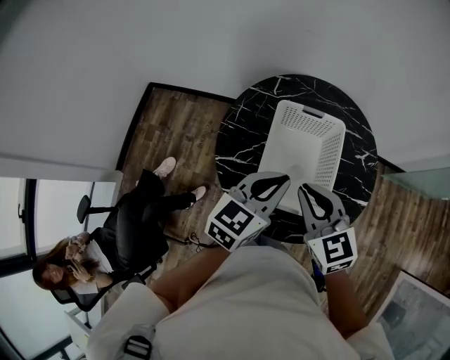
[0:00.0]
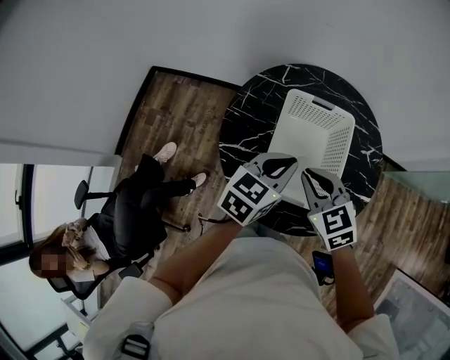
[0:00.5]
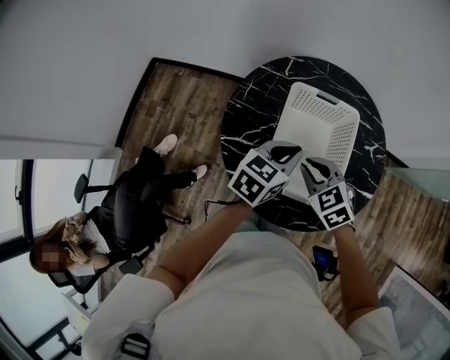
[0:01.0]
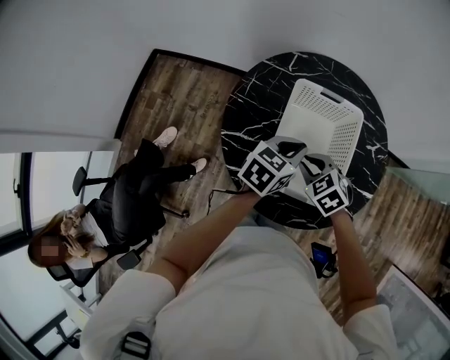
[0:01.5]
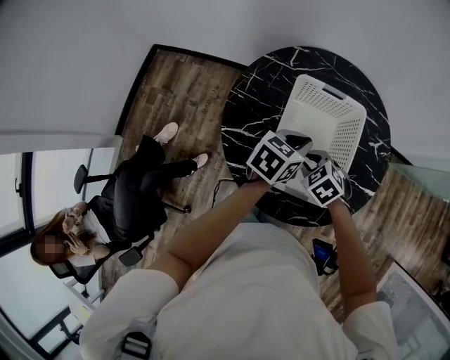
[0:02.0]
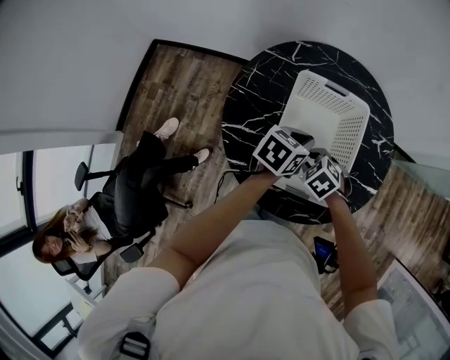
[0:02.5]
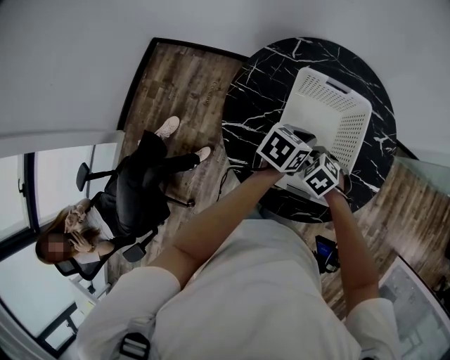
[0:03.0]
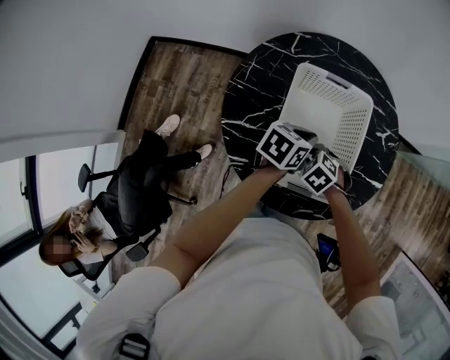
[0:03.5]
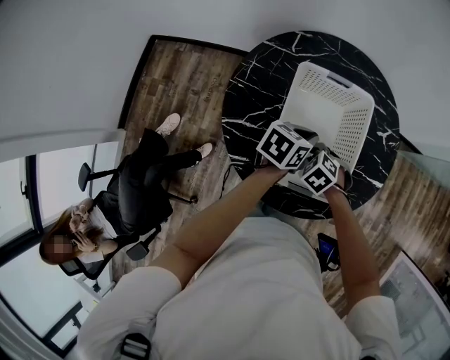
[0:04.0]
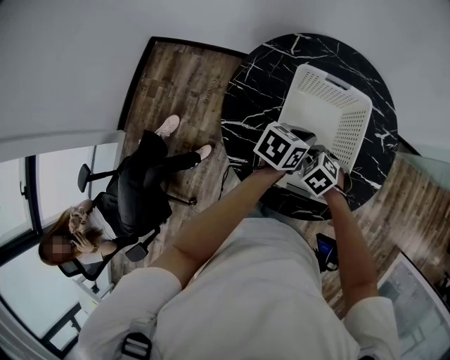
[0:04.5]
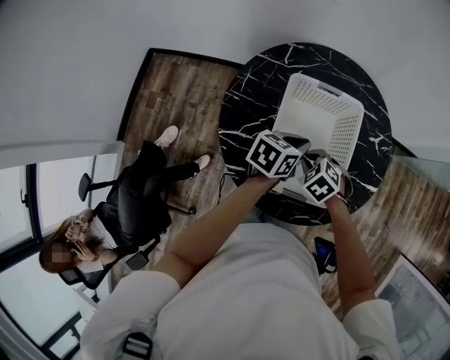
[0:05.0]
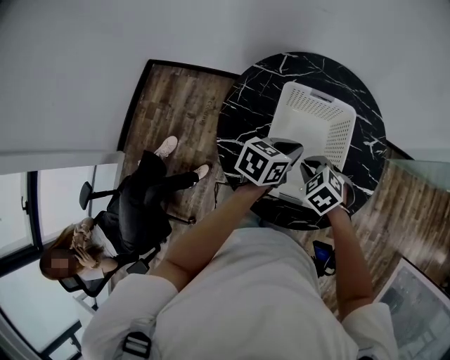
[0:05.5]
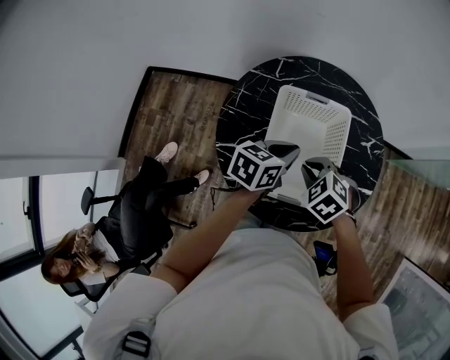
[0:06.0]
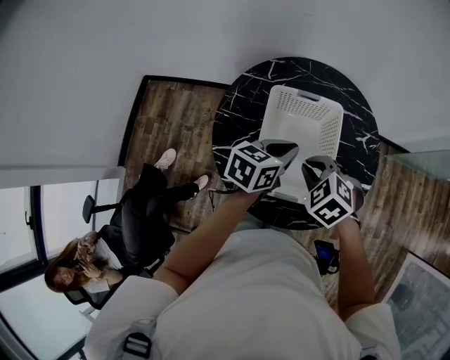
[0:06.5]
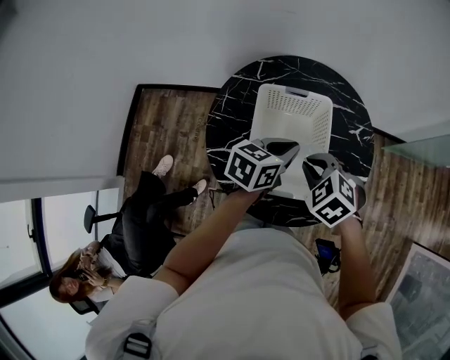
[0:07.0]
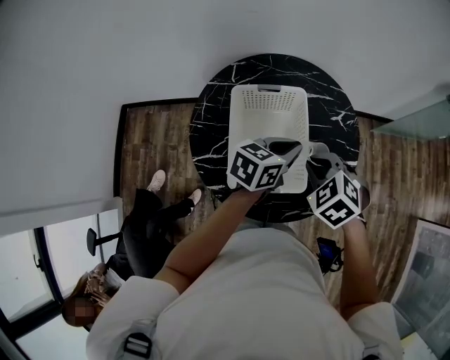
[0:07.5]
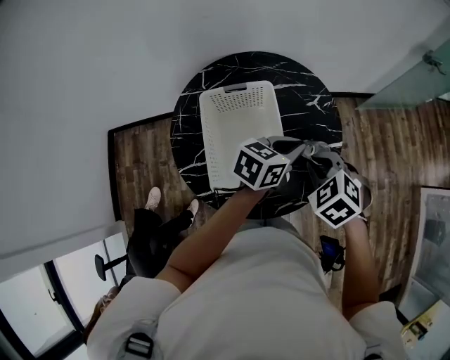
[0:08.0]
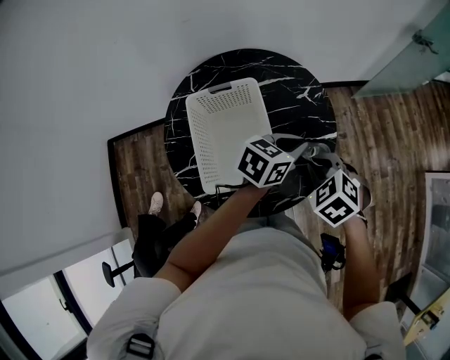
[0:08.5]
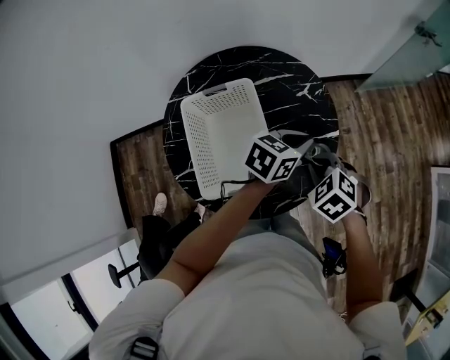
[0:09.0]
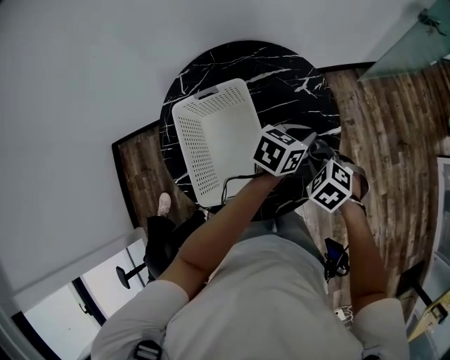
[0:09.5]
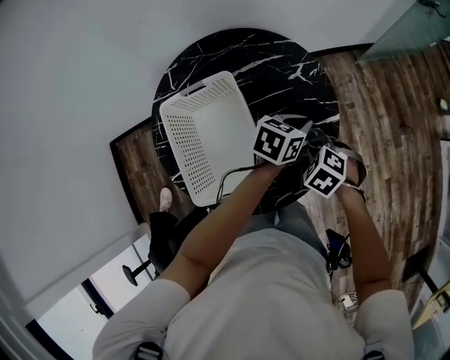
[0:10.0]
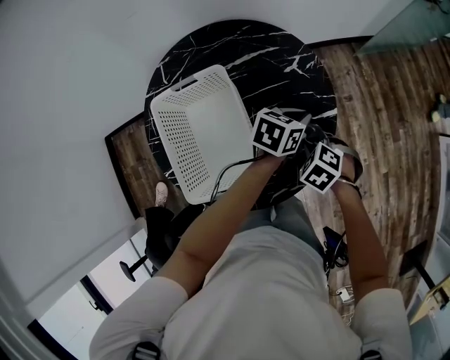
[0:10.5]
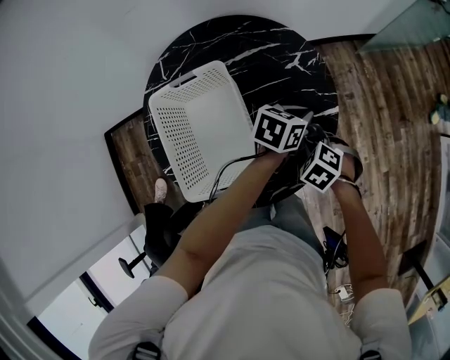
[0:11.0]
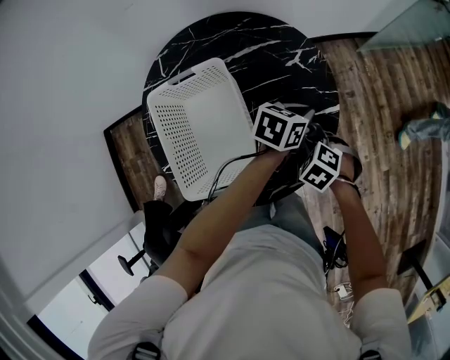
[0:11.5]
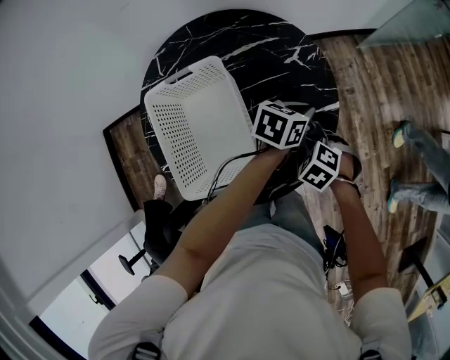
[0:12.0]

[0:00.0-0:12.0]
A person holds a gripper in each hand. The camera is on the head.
0:00.0 to 0:02.0: The left gripper goes some 15 cm downward and forward, and changes its angle by approximately 20 degrees; the right gripper travels downward by about 20 cm, and tips its fingers downward by about 40 degrees.
0:02.0 to 0:04.0: Both grippers move downward, roughly 5 cm.
0:04.0 to 0:06.0: The right gripper travels upward by roughly 15 cm. Meanwhile the left gripper moves upward, some 10 cm.
0:06.0 to 0:08.0: The left gripper moves about 20 cm, and rotates approximately 30 degrees; the right gripper shifts by roughly 20 cm, and changes its angle by some 20 degrees.
0:08.0 to 0:10.0: The right gripper is displaced downward and to the right by some 20 cm. Meanwhile the left gripper moves downward, forward and to the right, roughly 20 cm.
0:10.0 to 0:12.0: The right gripper is displaced downward by roughly 5 cm.

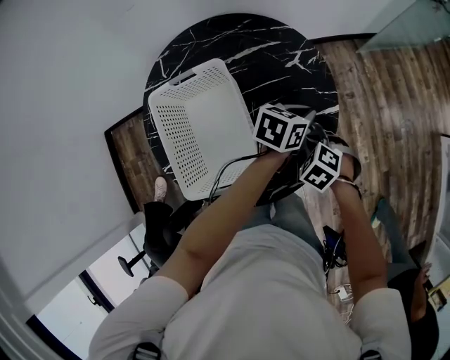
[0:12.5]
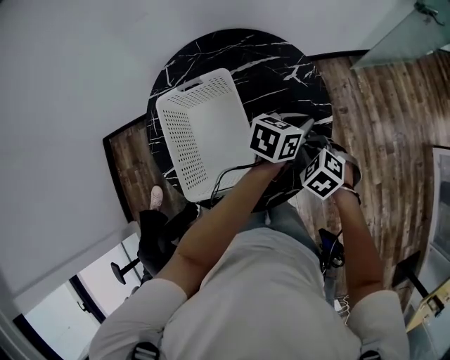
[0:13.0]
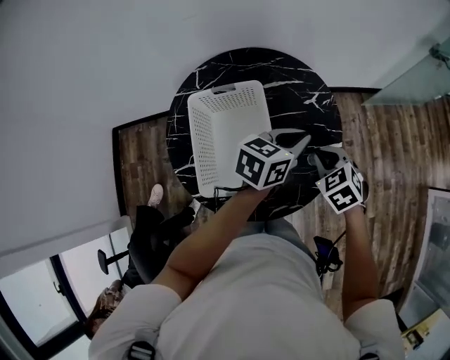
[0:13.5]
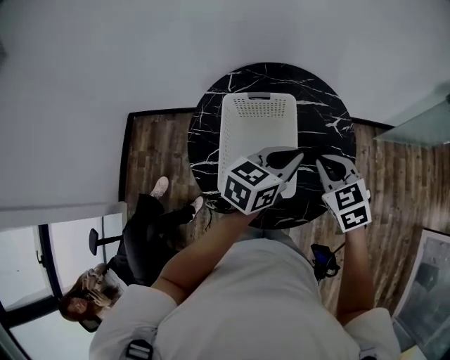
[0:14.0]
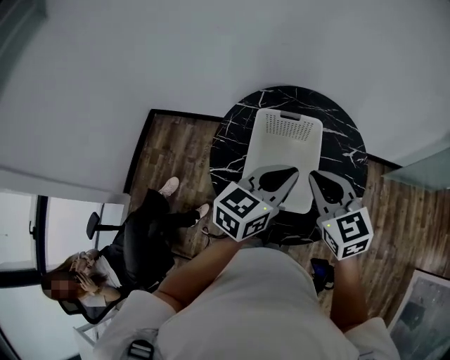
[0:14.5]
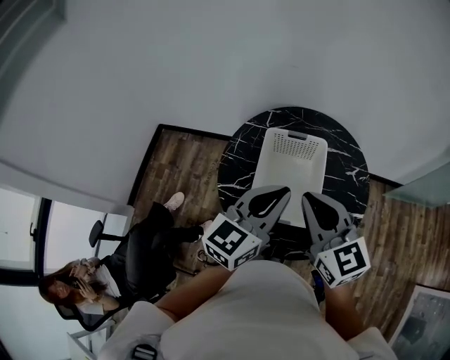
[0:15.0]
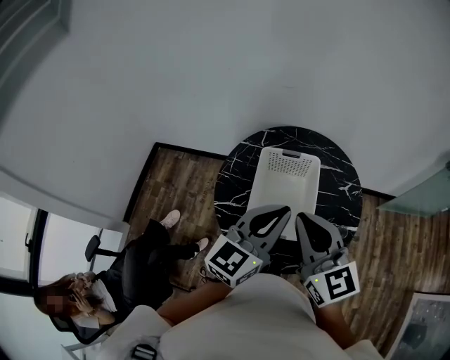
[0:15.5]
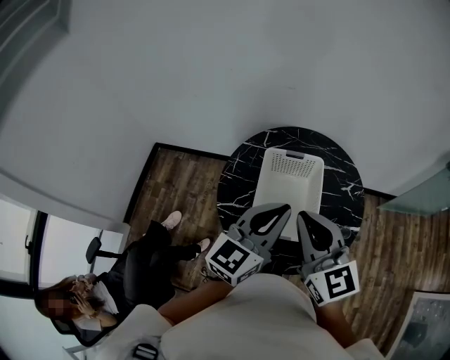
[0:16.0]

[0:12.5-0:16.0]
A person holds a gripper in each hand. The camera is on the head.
0:12.5 to 0:14.5: The left gripper ends up about 40 cm from where it was, and changes its angle by some 40 degrees. Meanwhile the right gripper travels upward by approximately 30 cm, and points its fingers approximately 50 degrees further upward.
0:14.5 to 0:16.0: The right gripper is displaced upward, to the left and backward by some 15 cm, while the left gripper shifts about 10 cm upward and to the left.

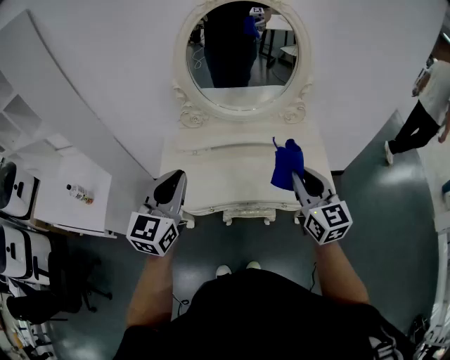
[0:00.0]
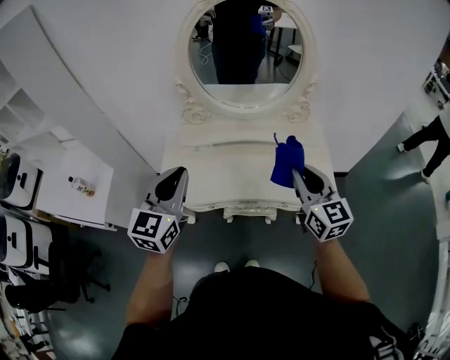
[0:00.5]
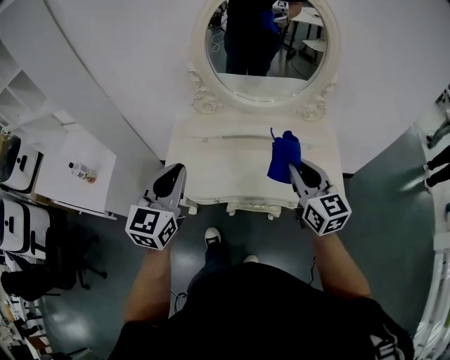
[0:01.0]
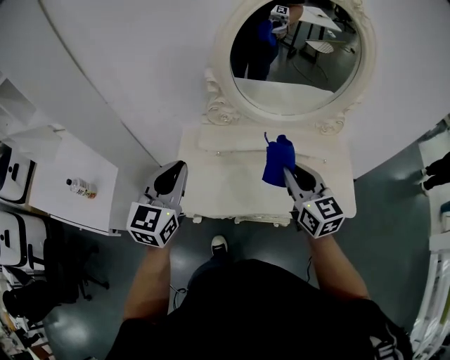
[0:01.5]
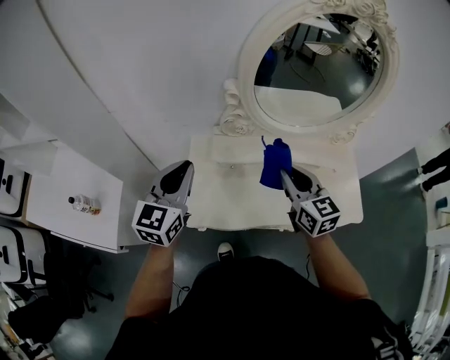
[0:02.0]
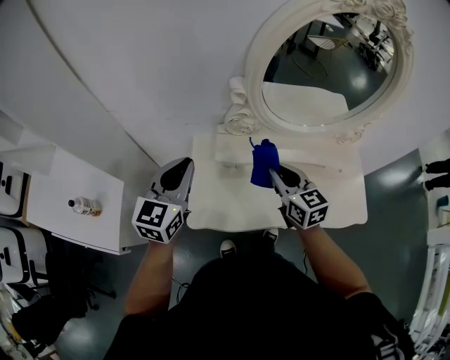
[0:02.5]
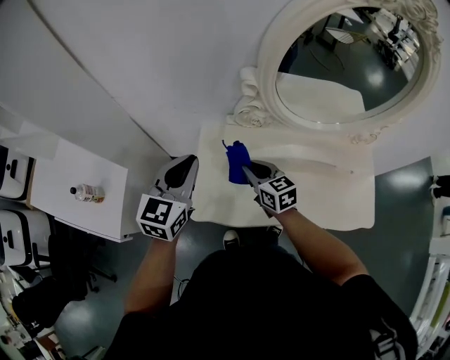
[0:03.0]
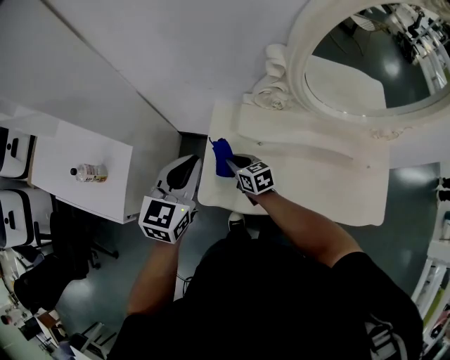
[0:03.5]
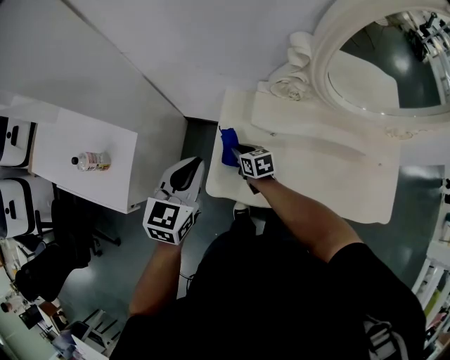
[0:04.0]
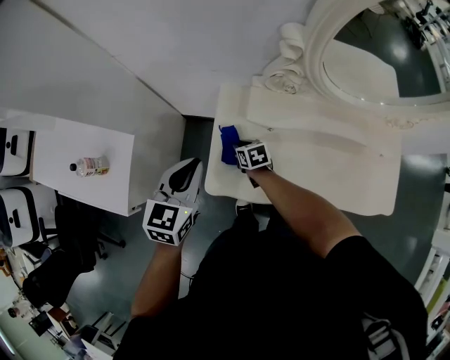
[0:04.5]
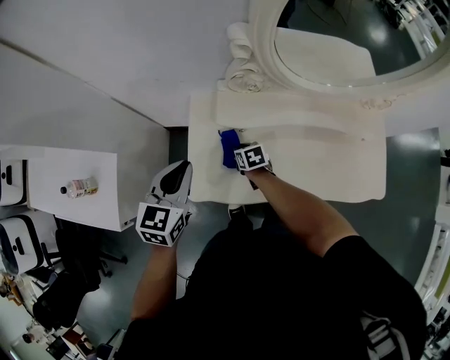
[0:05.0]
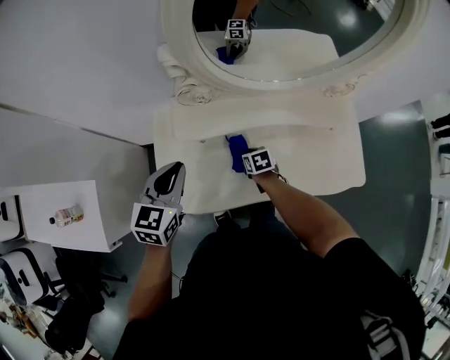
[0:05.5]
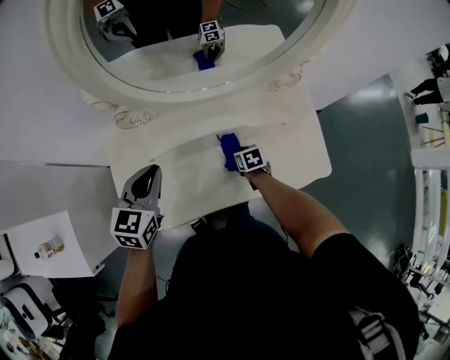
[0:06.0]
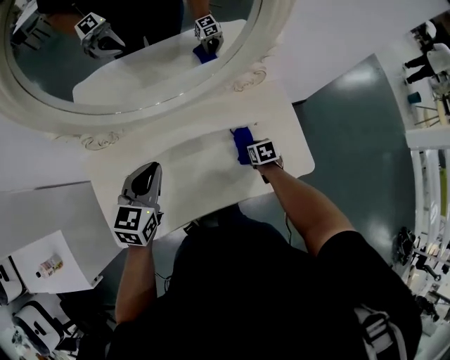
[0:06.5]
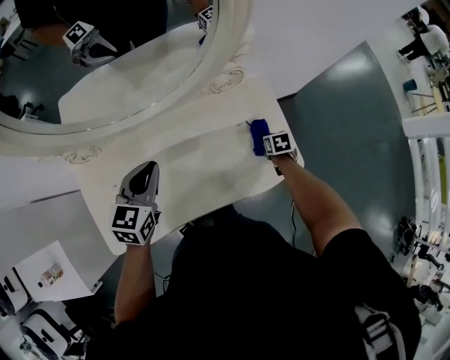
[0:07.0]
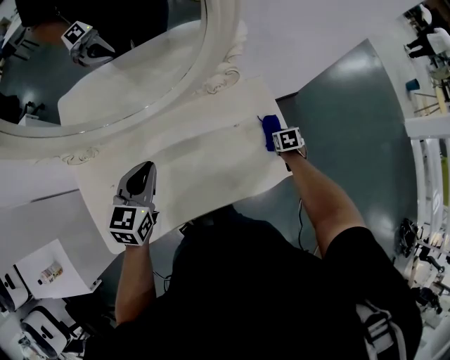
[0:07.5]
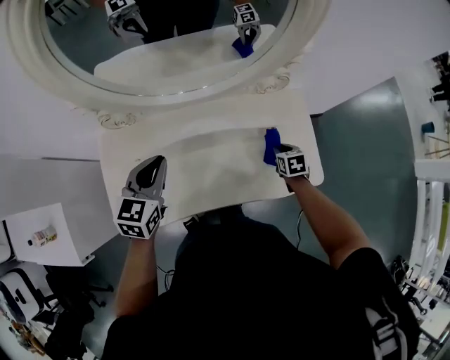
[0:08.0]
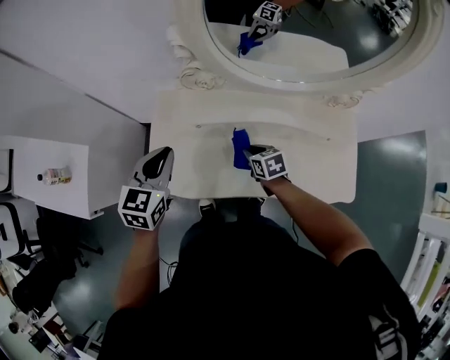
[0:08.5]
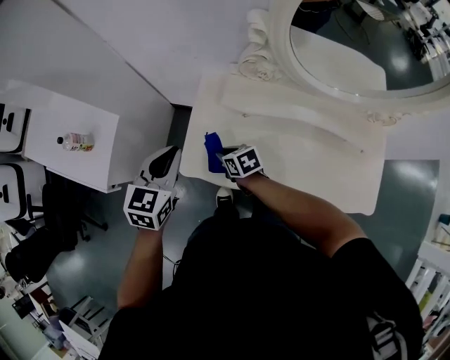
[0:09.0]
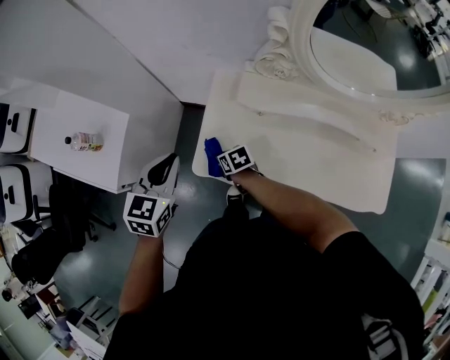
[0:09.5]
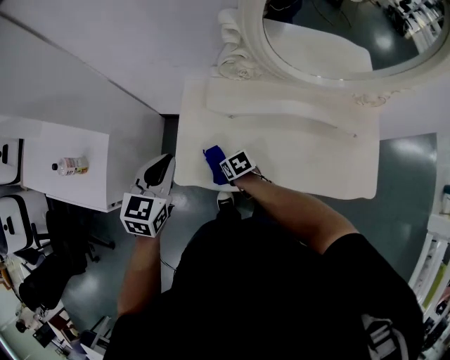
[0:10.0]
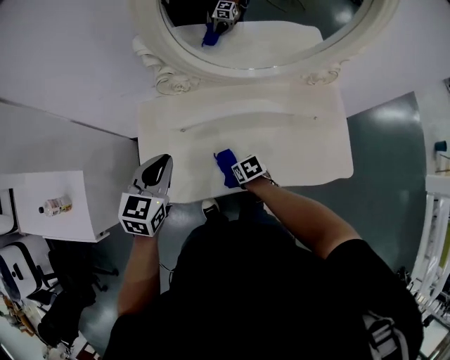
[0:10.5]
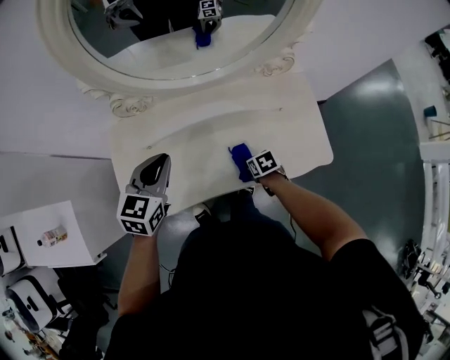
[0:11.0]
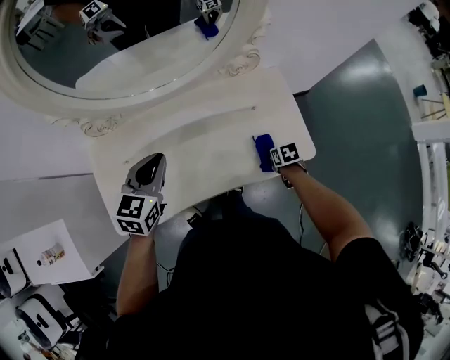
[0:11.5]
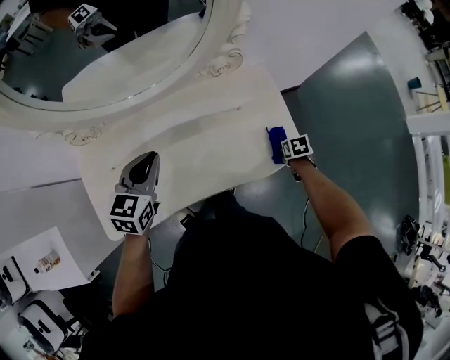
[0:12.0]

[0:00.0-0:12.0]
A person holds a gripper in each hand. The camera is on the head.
0:00.0 to 0:02.0: Both grippers move to the left and forward, some 30 cm.
0:02.0 to 0:04.0: The right gripper moves downward and to the left, approximately 40 cm, and swivels roughly 40 degrees; the left gripper moves downward and to the left, roughly 15 cm.
0:04.0 to 0:06.0: The left gripper moves approximately 30 cm. Meanwhile the right gripper ends up roughly 50 cm from where it was, and changes its angle by about 30 degrees.
0:06.0 to 0:08.0: The left gripper shifts some 10 cm to the right. The right gripper moves to the right, approximately 20 cm.
0:08.0 to 0:10.0: The right gripper moves roughly 60 cm, and turns by approximately 40 degrees. Meanwhile the left gripper moves about 35 cm.
0:10.0 to 0:12.0: Both grippers are carried approximately 60 cm. The left gripper swivels some 30 degrees. The right gripper rotates approximately 50 degrees.
